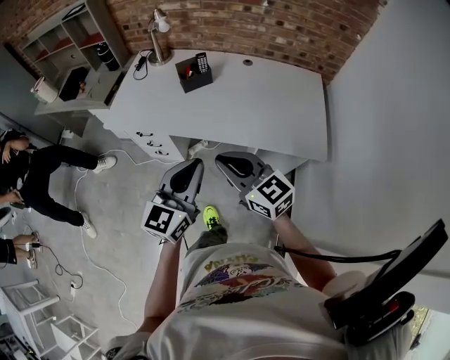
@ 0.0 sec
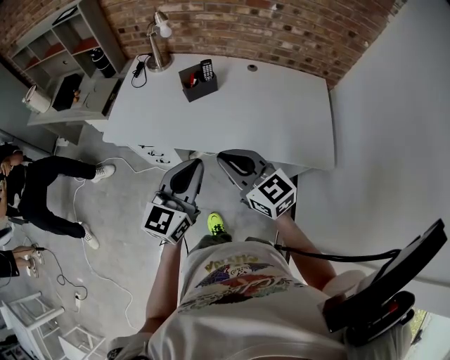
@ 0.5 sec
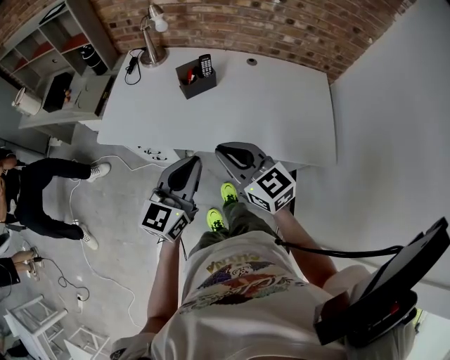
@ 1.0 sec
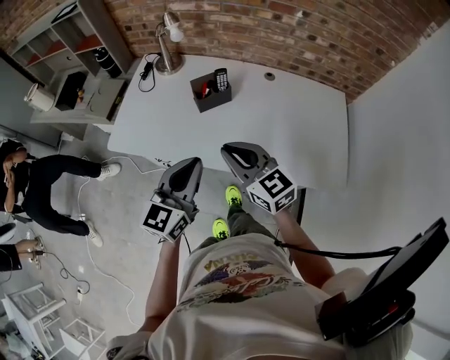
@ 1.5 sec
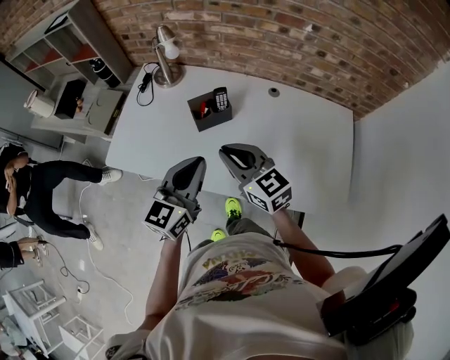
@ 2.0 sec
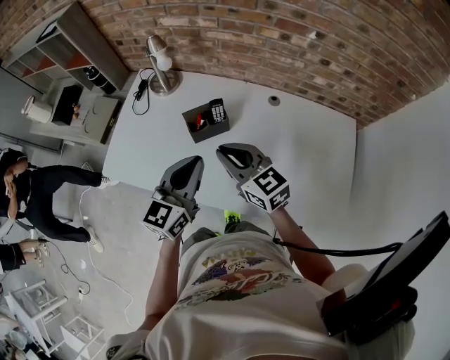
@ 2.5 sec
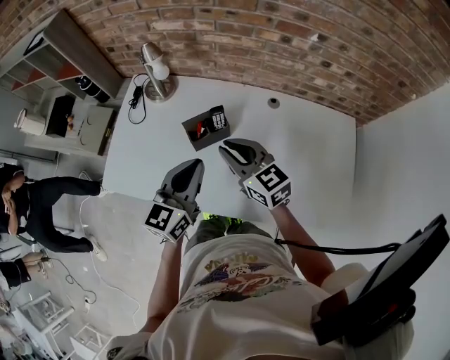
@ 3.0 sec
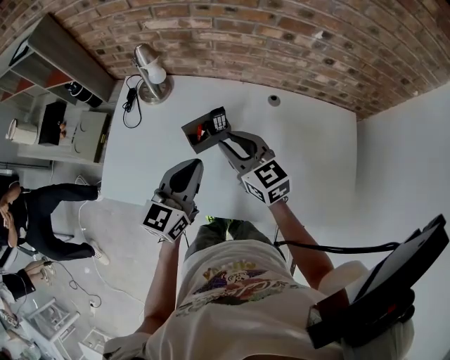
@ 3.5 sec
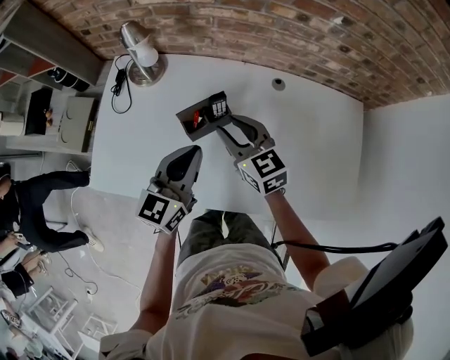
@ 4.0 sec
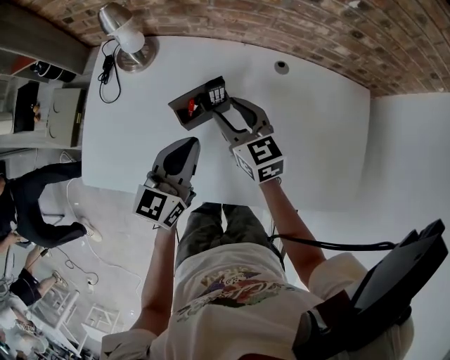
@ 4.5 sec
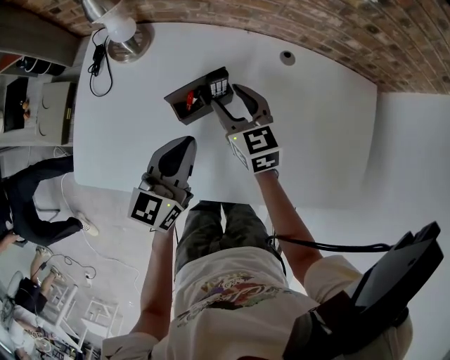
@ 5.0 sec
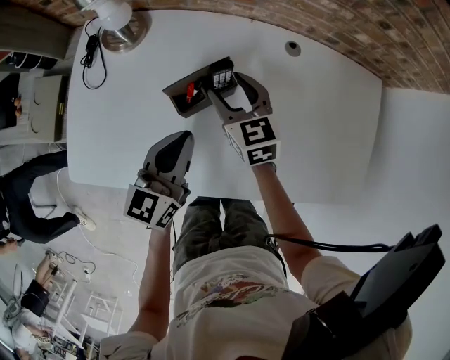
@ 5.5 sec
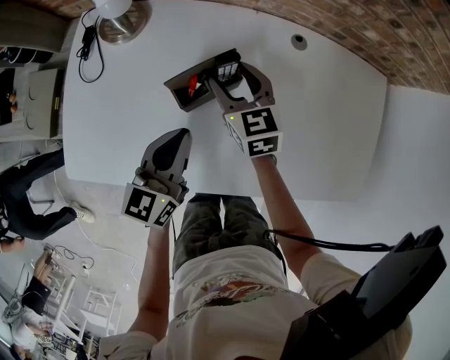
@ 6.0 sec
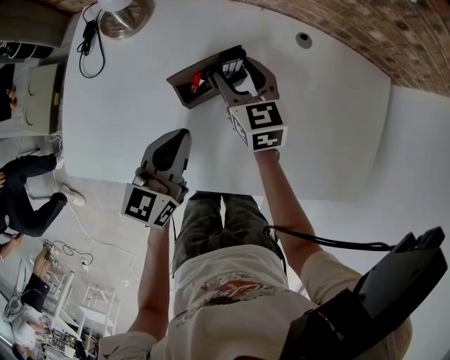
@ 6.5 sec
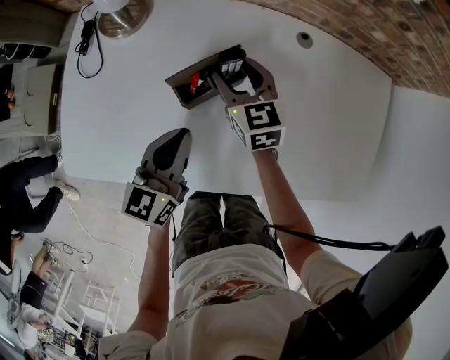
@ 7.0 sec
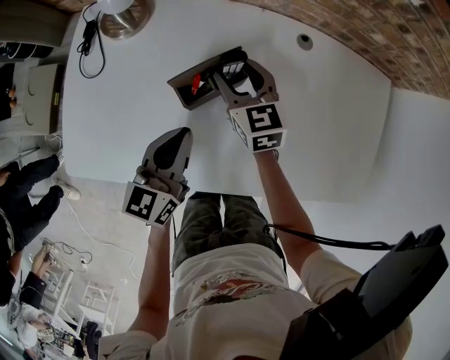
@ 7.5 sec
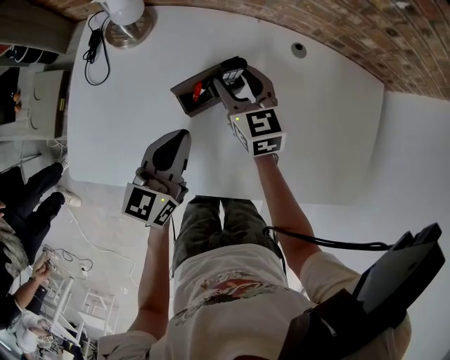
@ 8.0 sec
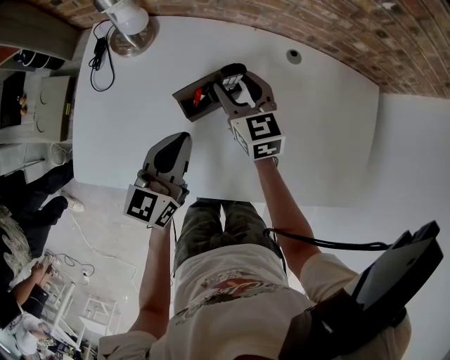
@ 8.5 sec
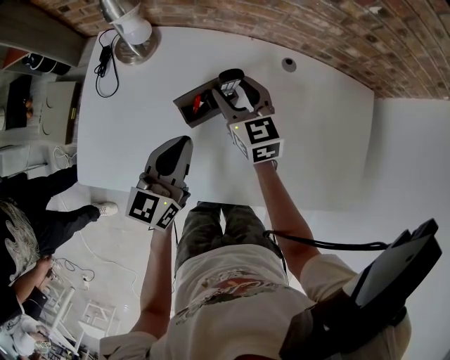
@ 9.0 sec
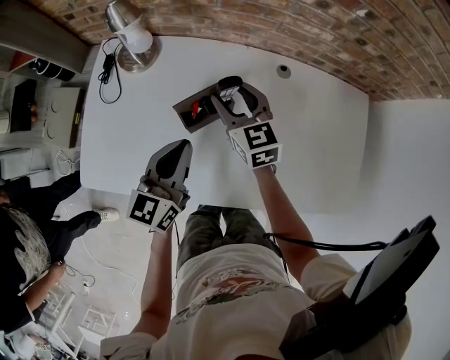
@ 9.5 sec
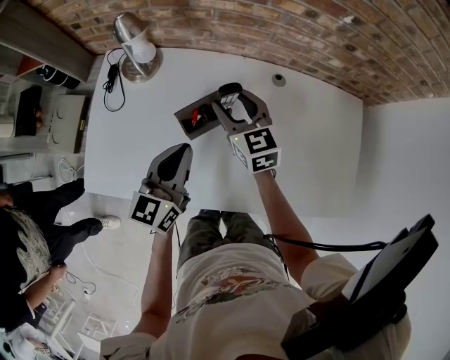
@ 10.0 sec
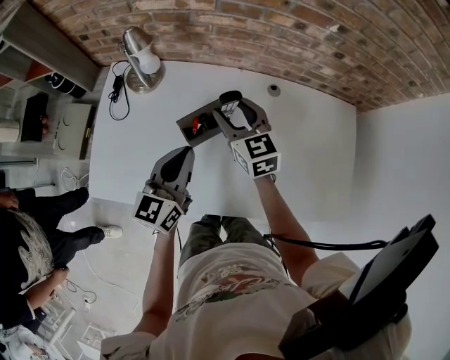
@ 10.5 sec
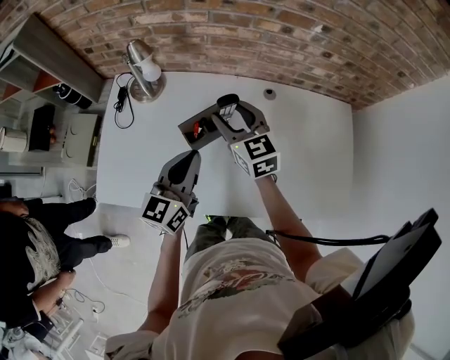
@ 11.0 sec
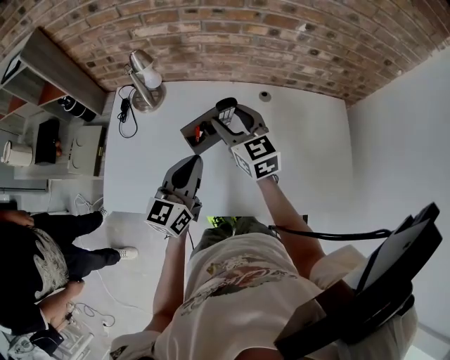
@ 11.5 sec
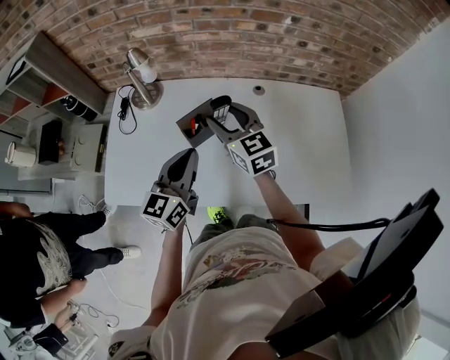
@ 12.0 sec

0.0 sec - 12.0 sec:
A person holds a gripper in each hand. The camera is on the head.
0.0 sec - 2.0 sec: The two grippers go some 30 cm forward.
2.0 sec - 4.0 sec: The two grippers go some 20 cm forward and downward. The right gripper opens.
4.0 sec - 6.0 sec: The left gripper heads downward, covering roughly 10 cm. Meanwhile the right gripper travels downward and forward by about 15 cm, and opens.
6.0 sec - 8.0 sec: The grippers move only a little.
8.0 sec - 10.0 sec: The grippers both shift upward by about 10 cm.
10.0 sec - 12.0 sec: The grippers both shift upward and backward by some 10 cm.

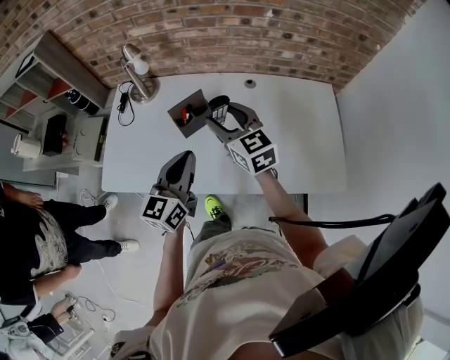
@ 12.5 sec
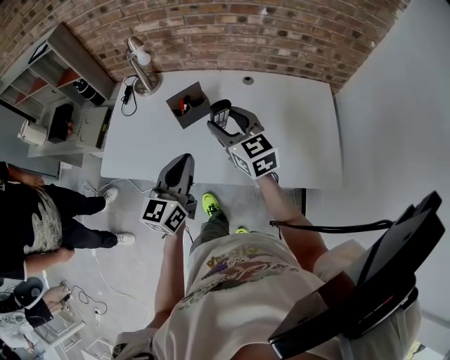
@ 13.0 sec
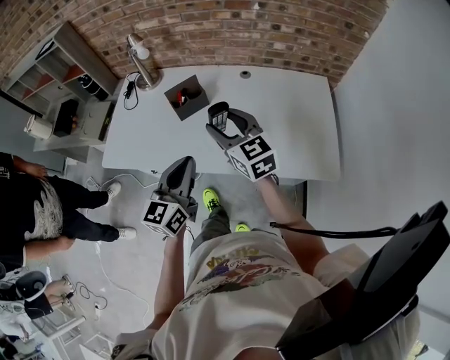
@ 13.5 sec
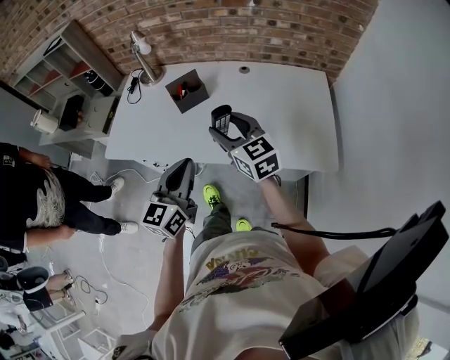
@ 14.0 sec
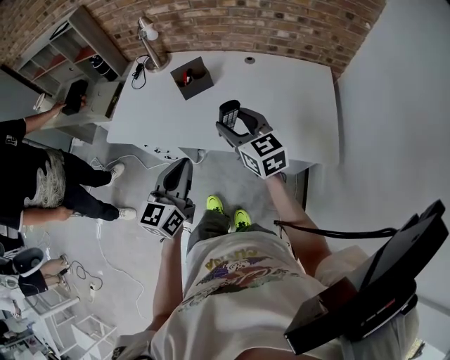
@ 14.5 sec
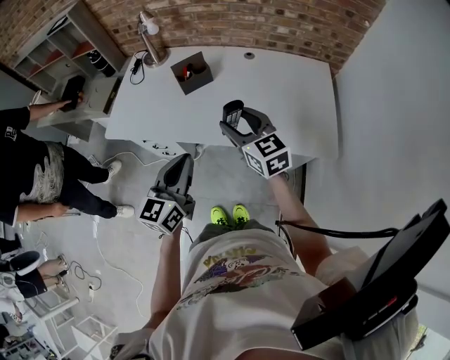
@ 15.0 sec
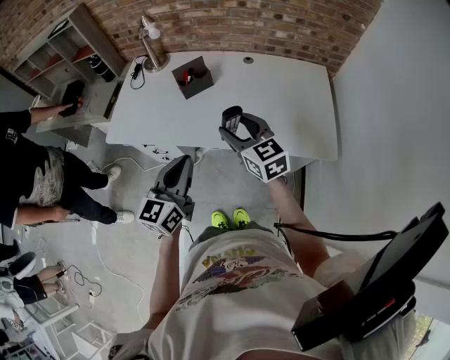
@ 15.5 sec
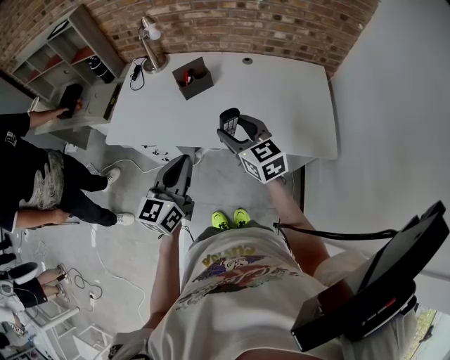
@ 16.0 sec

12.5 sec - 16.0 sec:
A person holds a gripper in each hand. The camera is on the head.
12.5 sec - 14.5 sec: Both grippers travel together backward, roughly 20 cm.
14.5 sec - 16.0 sec: There are only small adjustments of the grippers.

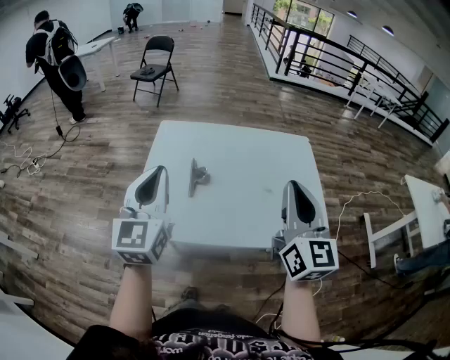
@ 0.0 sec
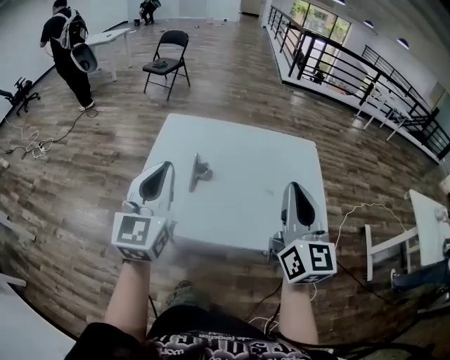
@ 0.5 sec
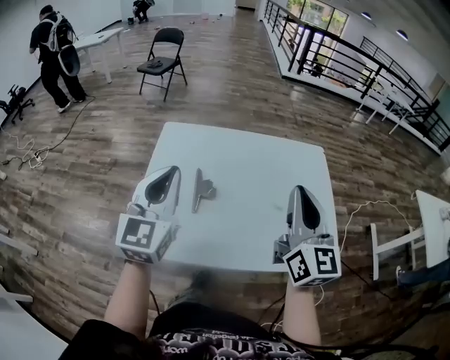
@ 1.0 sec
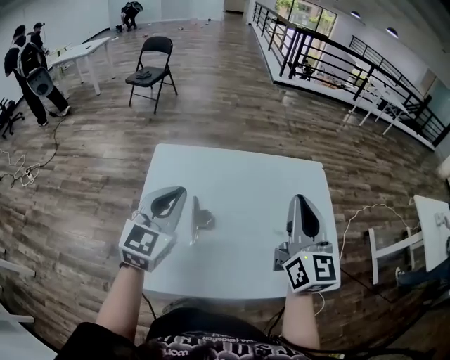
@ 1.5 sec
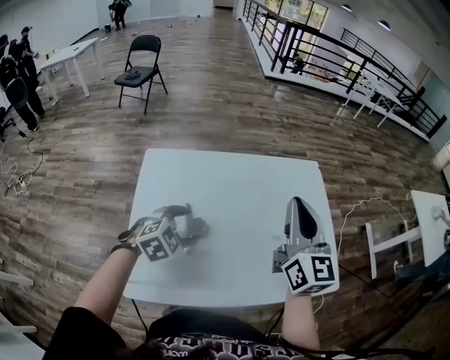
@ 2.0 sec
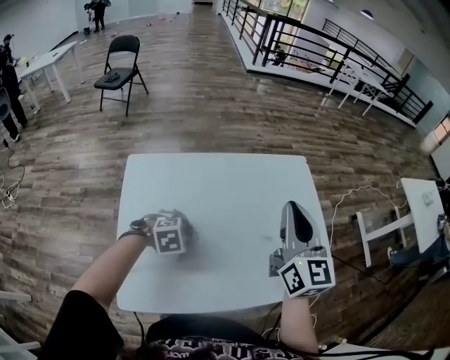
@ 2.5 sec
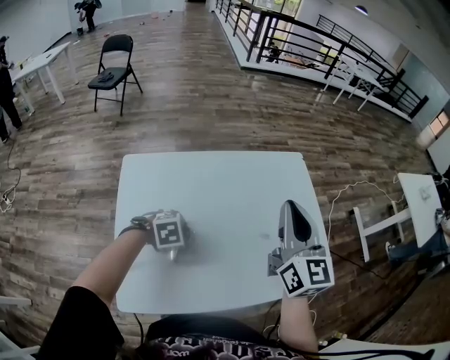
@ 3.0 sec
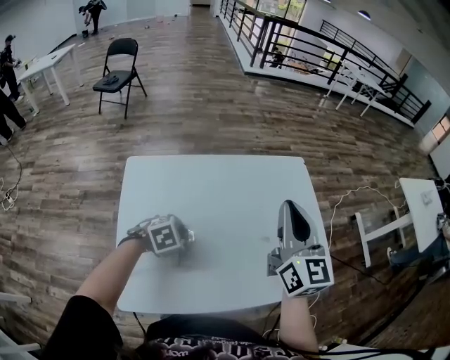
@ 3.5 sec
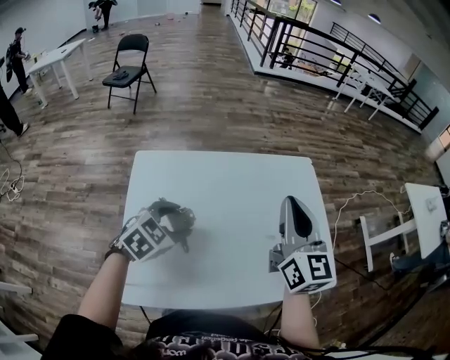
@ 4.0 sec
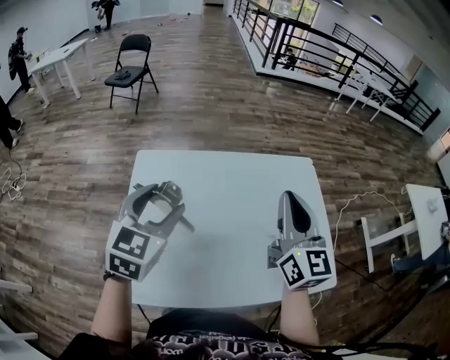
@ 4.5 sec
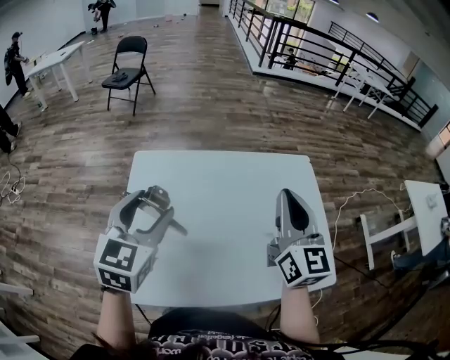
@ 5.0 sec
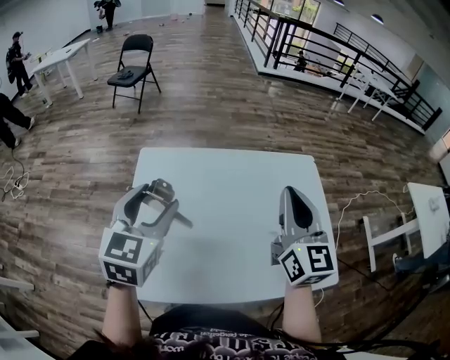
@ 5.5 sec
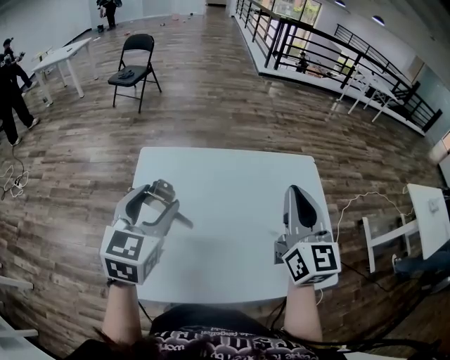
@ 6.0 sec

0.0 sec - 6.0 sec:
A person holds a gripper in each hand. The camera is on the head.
0.0 sec - 2.0 sec: The left gripper moves downward, about 25 cm, points its fingers approximately 50 degrees further downward, and opens its fingers. The right gripper ends up approximately 15 cm from where it was.
2.0 sec - 4.0 sec: The left gripper moves approximately 10 cm downward and comes back.
4.0 sec - 6.0 sec: The left gripper heads upward and to the left, covering roughly 15 cm, and rotates approximately 40 degrees.

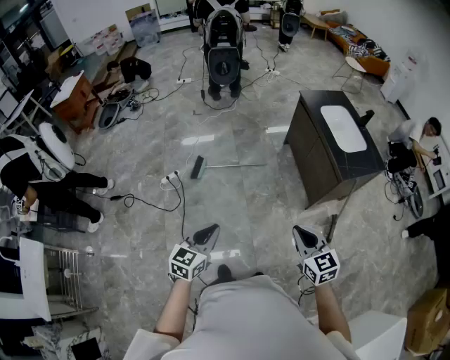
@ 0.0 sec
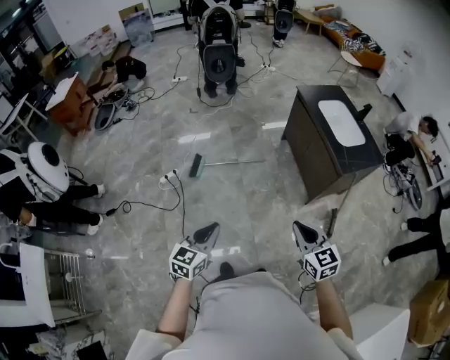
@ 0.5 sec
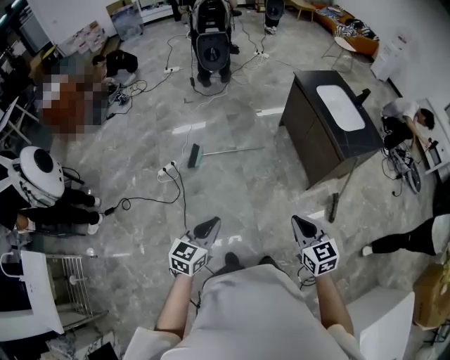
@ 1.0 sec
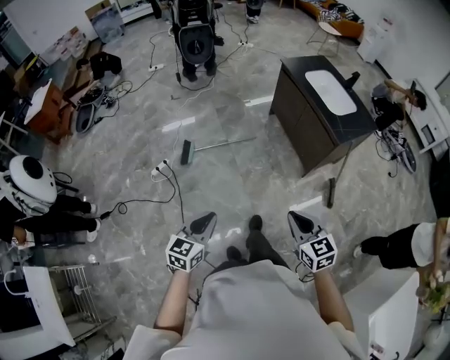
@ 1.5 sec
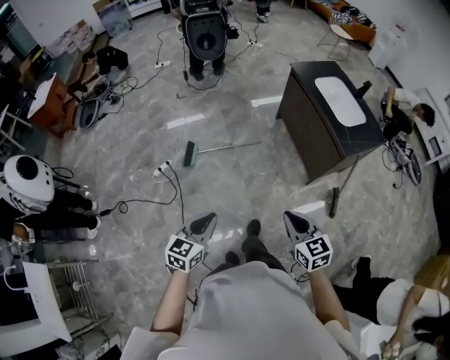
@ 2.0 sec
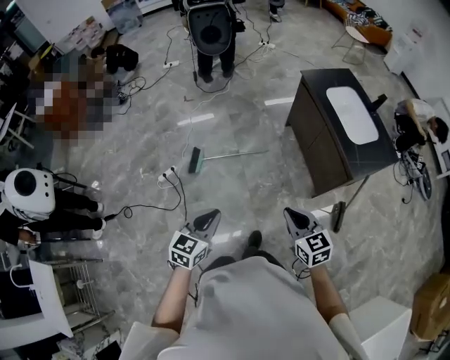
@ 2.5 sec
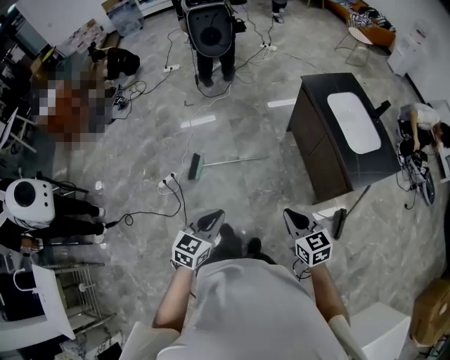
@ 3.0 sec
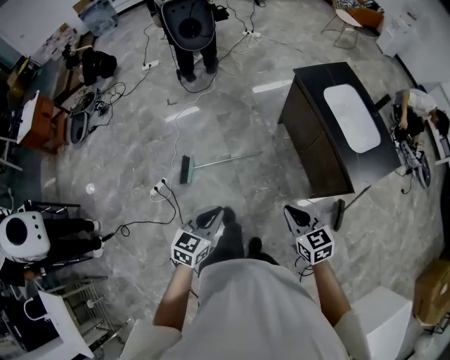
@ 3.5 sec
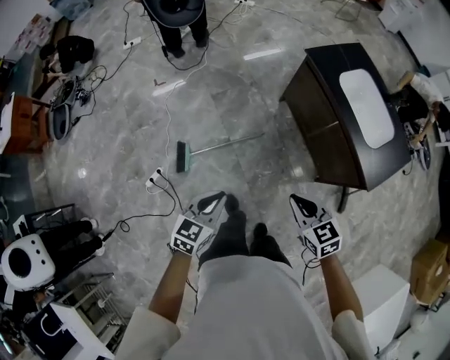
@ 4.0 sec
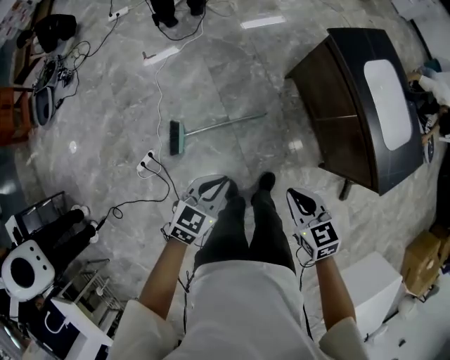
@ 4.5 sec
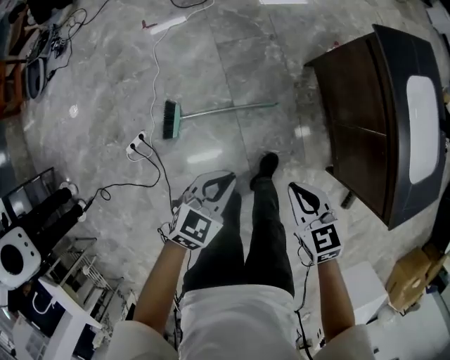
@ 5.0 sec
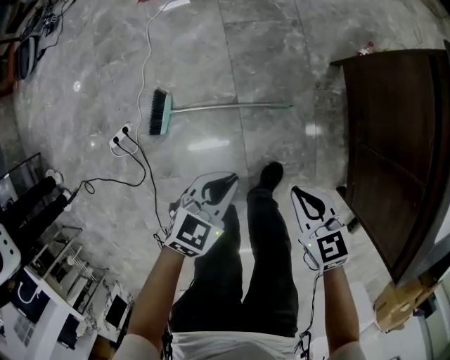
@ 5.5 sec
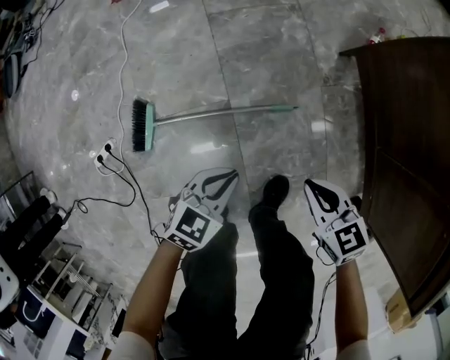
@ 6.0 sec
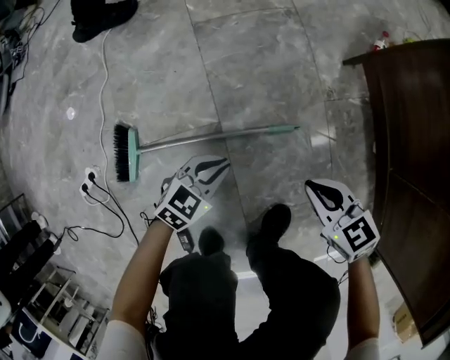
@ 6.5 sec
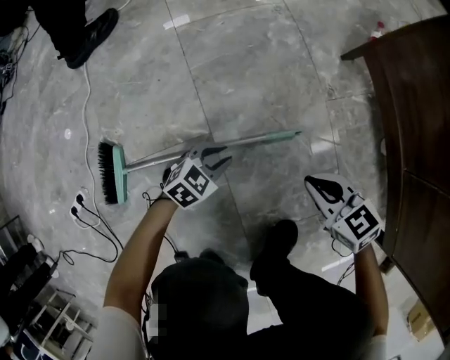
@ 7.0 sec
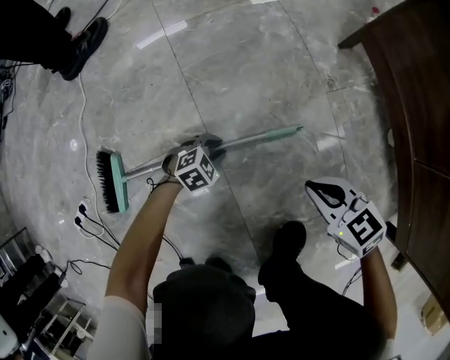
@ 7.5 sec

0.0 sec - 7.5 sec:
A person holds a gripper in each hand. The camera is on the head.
0.0 sec - 2.0 sec: The left gripper travels forward and to the left by some 10 cm. The right gripper travels to the left by approximately 10 cm.
2.0 sec - 4.0 sec: The two grippers travel together, forward, some 50 cm.
4.0 sec - 5.5 sec: The right gripper is displaced downward and forward by roughly 50 cm; the left gripper goes roughly 50 cm downward.
5.5 sec - 7.5 sec: Both grippers travel together downward, roughly 50 cm. The left gripper turns by approximately 40 degrees, and opens its fingers.
